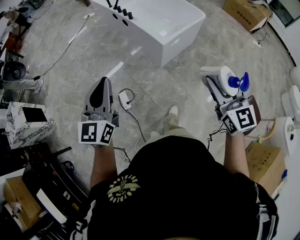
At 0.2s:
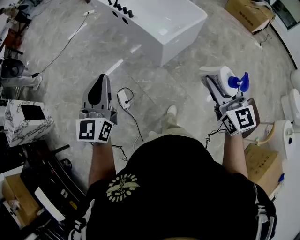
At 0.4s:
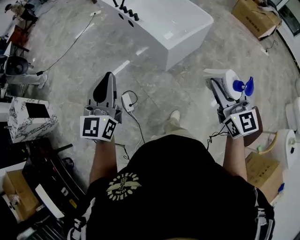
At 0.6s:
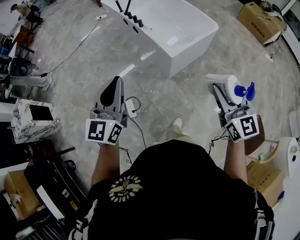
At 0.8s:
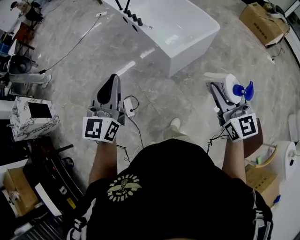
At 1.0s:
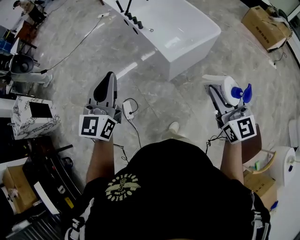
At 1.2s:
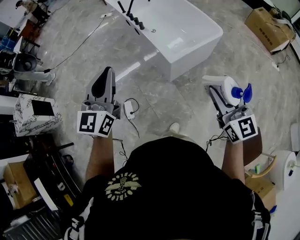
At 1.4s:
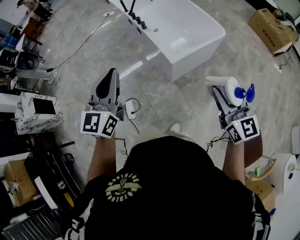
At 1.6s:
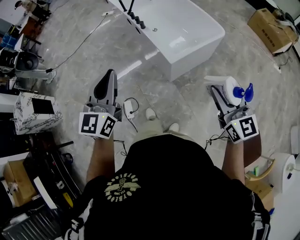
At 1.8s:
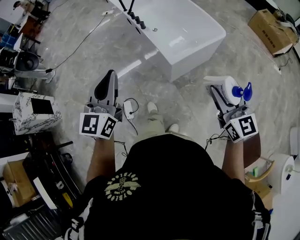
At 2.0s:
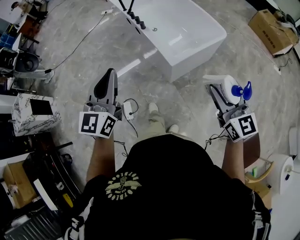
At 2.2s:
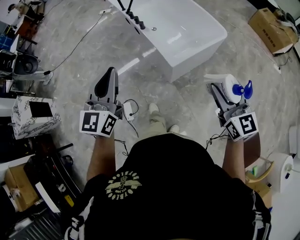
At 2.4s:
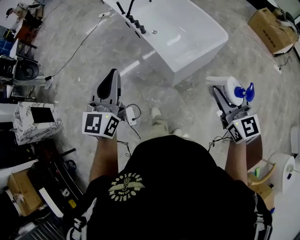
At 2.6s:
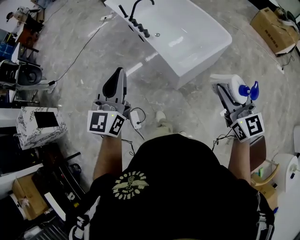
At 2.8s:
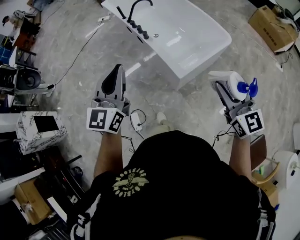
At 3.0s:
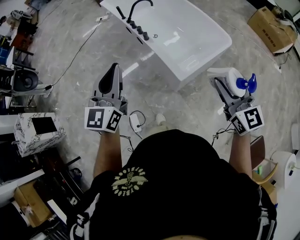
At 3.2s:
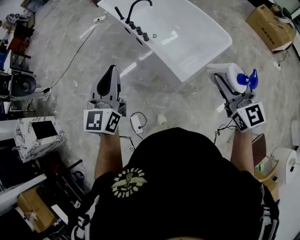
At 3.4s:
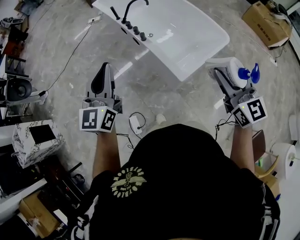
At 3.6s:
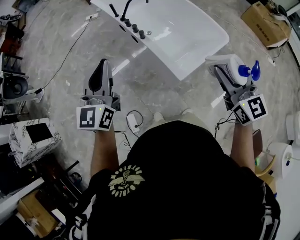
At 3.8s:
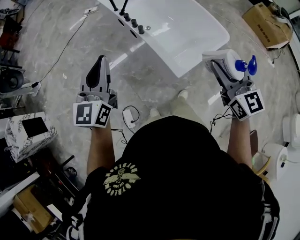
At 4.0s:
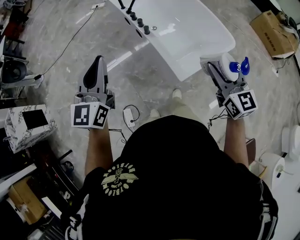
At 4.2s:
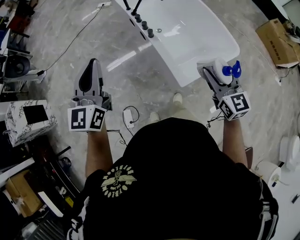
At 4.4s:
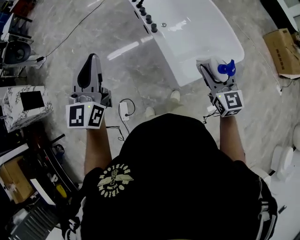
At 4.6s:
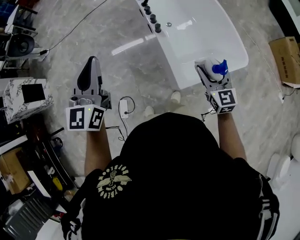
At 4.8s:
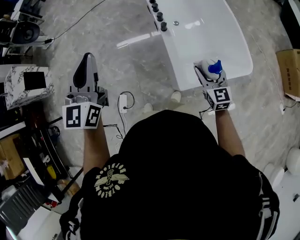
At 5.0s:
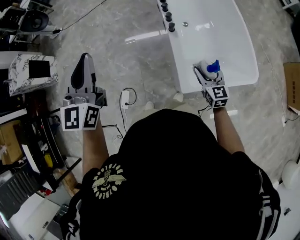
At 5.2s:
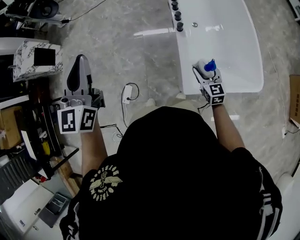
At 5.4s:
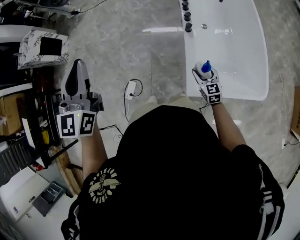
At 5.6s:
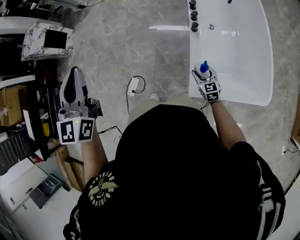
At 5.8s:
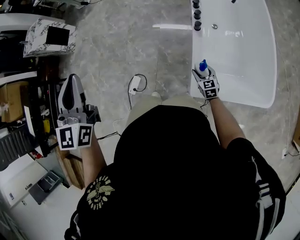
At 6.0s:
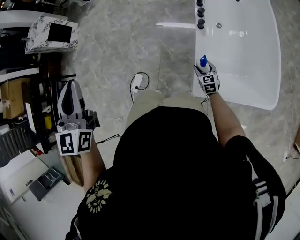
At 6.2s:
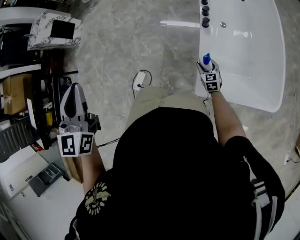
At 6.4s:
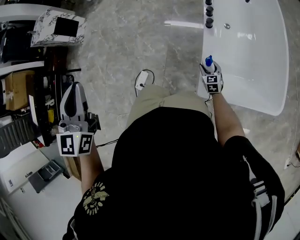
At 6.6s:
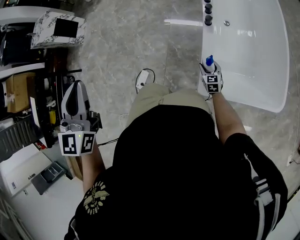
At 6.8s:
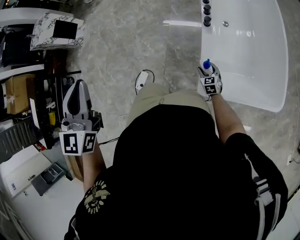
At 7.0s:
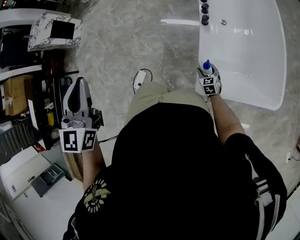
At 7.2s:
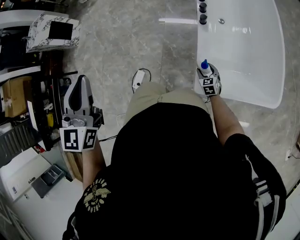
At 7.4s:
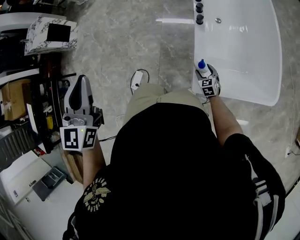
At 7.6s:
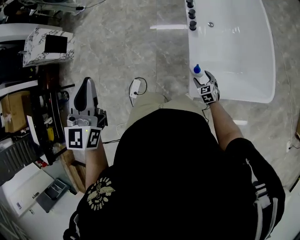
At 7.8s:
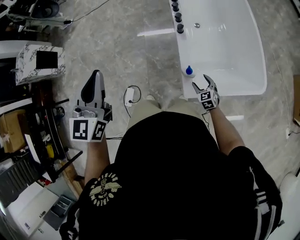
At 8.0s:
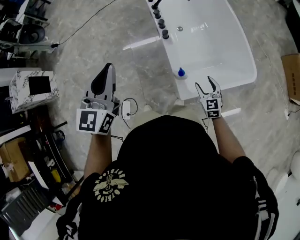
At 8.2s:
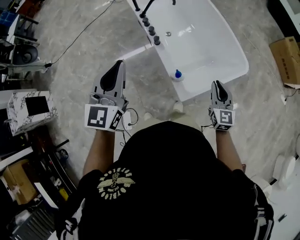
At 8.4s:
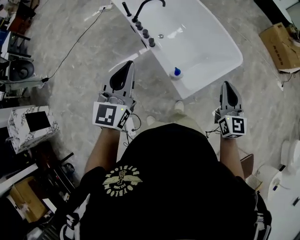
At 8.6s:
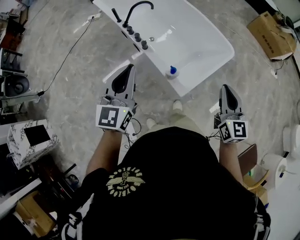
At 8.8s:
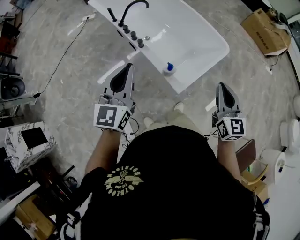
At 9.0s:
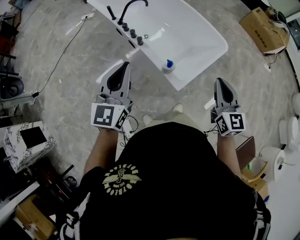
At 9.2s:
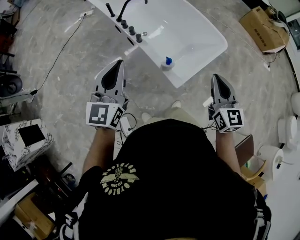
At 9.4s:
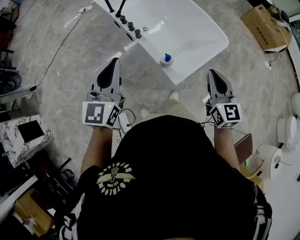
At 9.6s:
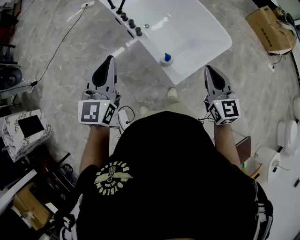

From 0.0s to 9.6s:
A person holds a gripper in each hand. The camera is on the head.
From 0.0s to 1.6s: Both grippers move forward and to the right, about 20 cm.
From 1.6s to 3.2s: The left gripper is displaced forward by roughly 25 cm. Meanwhile the right gripper travels forward and to the left by approximately 25 cm.
From 3.2s to 4.8s: The left gripper is displaced forward by roughly 10 cm, and changes its angle by roughly 30 degrees; the right gripper shifts about 30 cm forward and downward, and swivels some 20 degrees.
From 4.8s to 6.4s: The right gripper shifts about 35 cm downward, and turns by some 20 degrees. Meanwhile the left gripper moves roughly 15 cm, and turns by roughly 30 degrees.
From 6.4s to 8.0s: The left gripper ends up roughly 20 cm from where it was, and changes its angle by roughly 40 degrees, while the right gripper moves upward, roughly 20 cm, and swivels approximately 20 degrees.
From 8.0s to 9.6s: The left gripper rotates roughly 20 degrees; the right gripper goes approximately 25 cm upward, turns by approximately 30 degrees, and closes up.

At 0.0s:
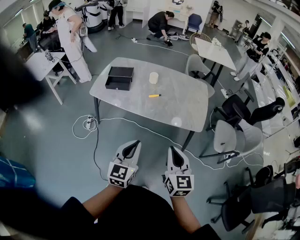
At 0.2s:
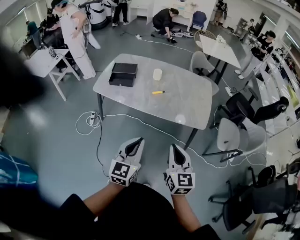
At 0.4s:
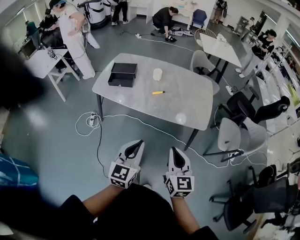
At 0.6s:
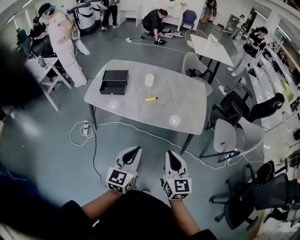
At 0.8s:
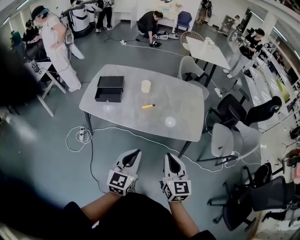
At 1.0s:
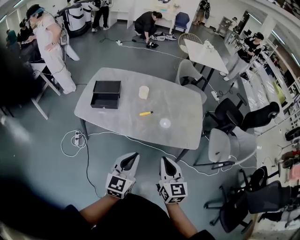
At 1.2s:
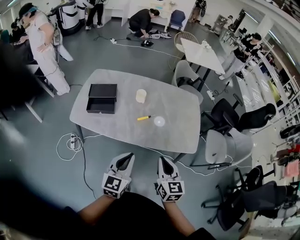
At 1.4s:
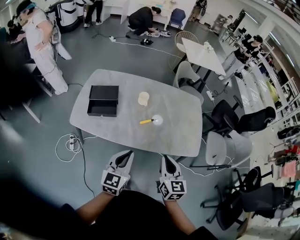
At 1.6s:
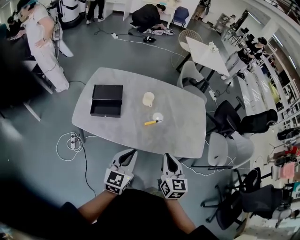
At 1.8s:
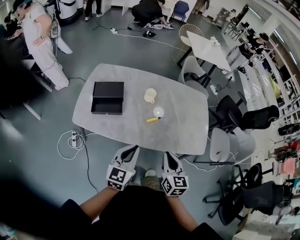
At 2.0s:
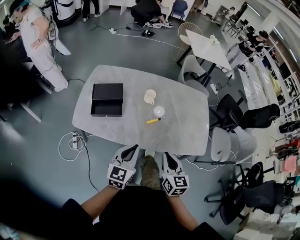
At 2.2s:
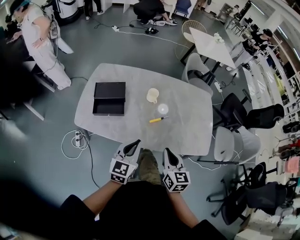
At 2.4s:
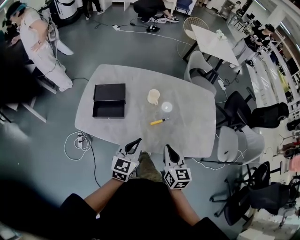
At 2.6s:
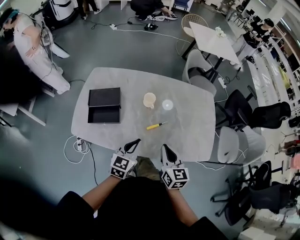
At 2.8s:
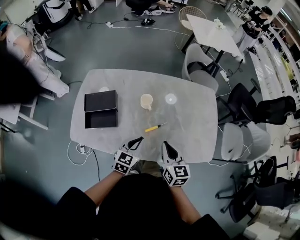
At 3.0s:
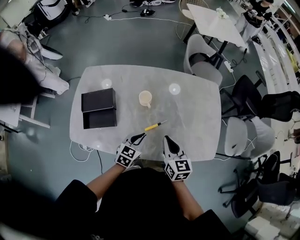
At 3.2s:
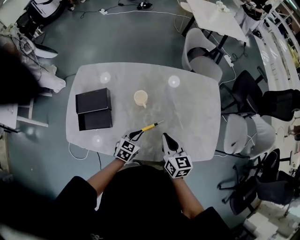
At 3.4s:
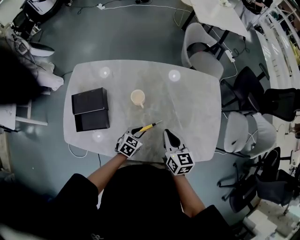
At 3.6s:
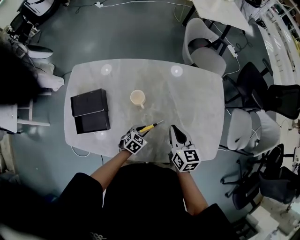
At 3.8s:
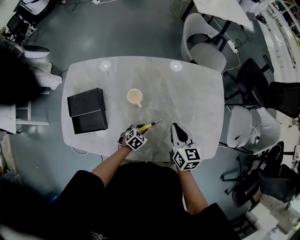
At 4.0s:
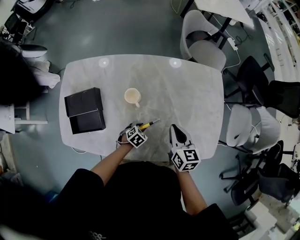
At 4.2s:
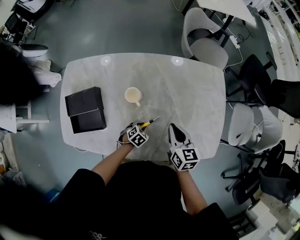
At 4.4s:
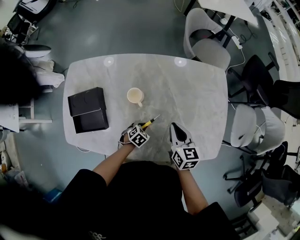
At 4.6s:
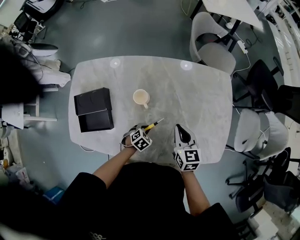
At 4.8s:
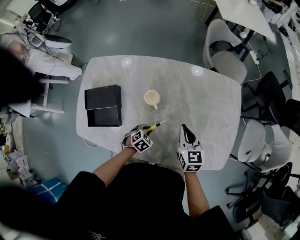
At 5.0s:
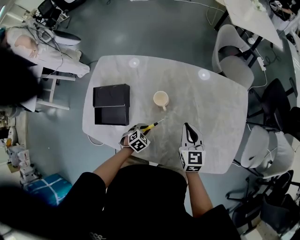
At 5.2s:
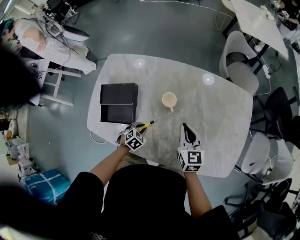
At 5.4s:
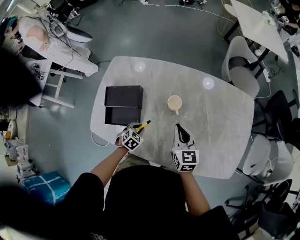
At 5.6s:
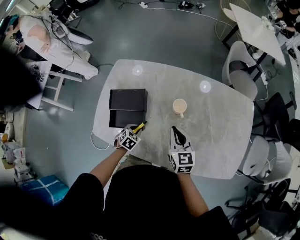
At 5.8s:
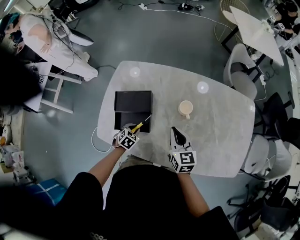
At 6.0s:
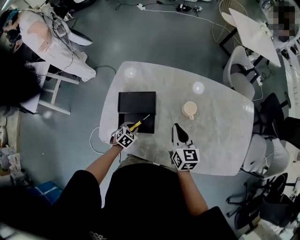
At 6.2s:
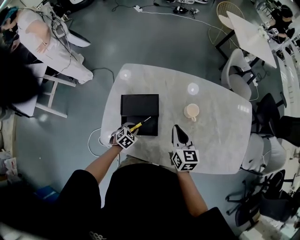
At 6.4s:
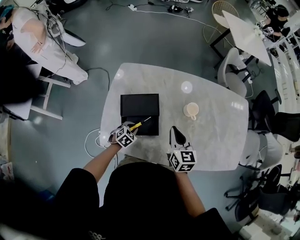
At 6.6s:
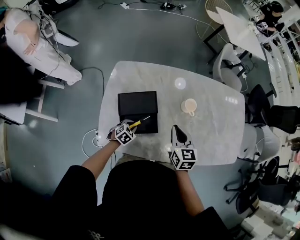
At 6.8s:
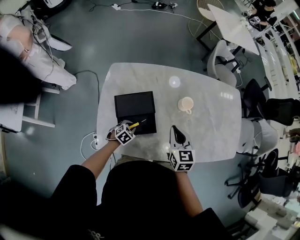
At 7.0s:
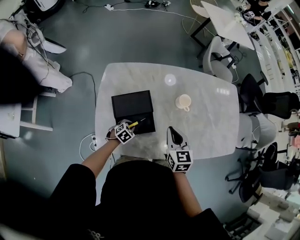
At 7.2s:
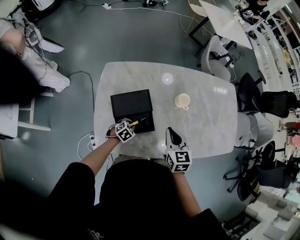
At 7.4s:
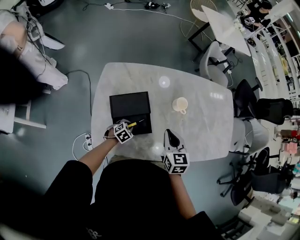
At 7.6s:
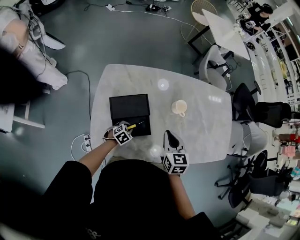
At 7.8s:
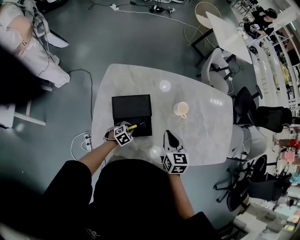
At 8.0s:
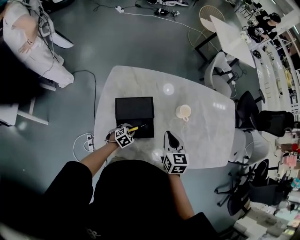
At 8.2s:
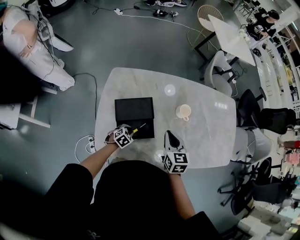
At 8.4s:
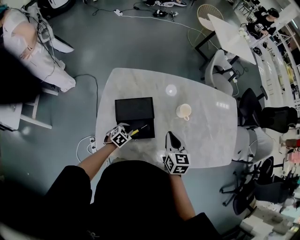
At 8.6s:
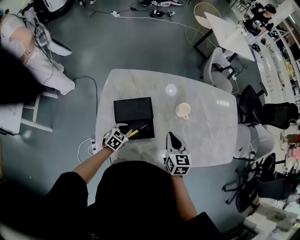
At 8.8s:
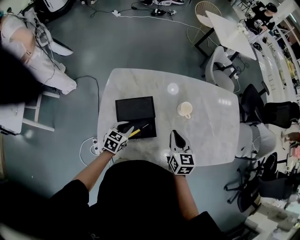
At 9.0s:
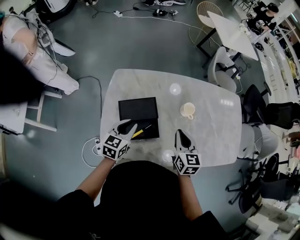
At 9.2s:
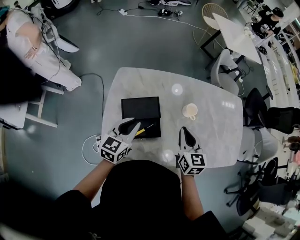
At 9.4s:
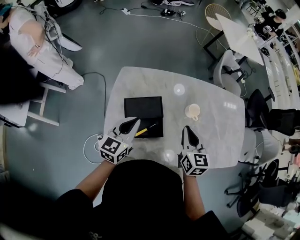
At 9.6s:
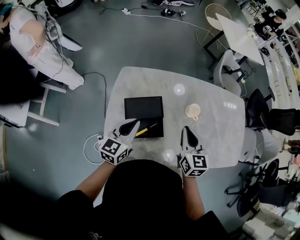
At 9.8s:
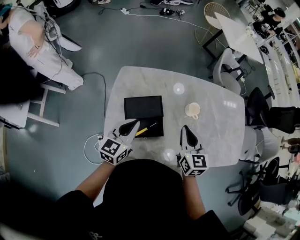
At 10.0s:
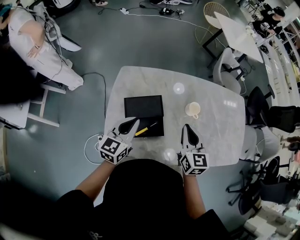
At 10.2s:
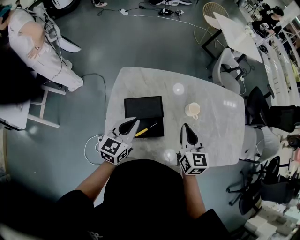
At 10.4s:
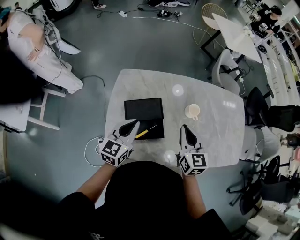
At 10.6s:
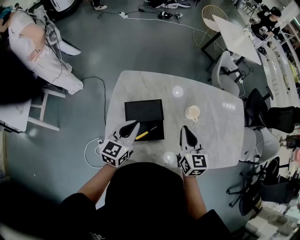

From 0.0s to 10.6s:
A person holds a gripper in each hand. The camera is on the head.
From 0.0s to 1.6s: The grippers both shift forward and to the left by roughly 30 cm.
From 1.6s to 3.0s: The right gripper moves forward, roughly 25 cm. Meanwhile the left gripper travels forward and downward by about 30 cm, and swivels some 30 degrees.
From 3.0s to 4.6s: The right gripper goes some 15 cm forward and downward. The left gripper travels downward by approximately 20 cm, and angles its fingers downward, by approximately 40 degrees.
From 4.6s to 6.0s: The grippers both shift to the left by about 30 cm.
From 6.0s to 7.6s: The right gripper heads backward and to the left, covering roughly 10 cm; the left gripper travels downward by some 5 cm, and rotates roughly 20 degrees.
From 7.6s to 9.0s: The left gripper is displaced upward by approximately 25 cm, and angles its fingers upward, by roughly 30 degrees.
From 9.0s to 10.6s: Both grippers travel together upward, about 5 cm.

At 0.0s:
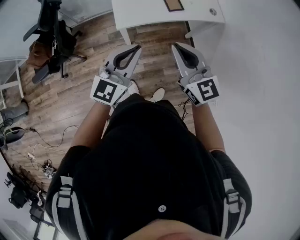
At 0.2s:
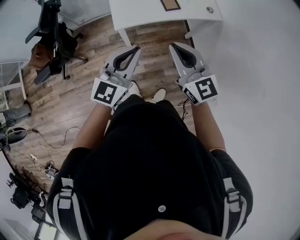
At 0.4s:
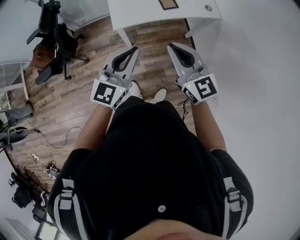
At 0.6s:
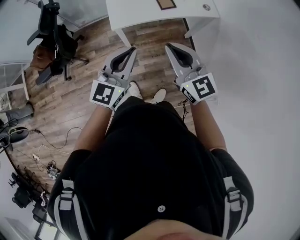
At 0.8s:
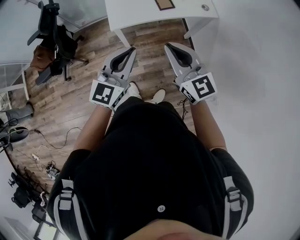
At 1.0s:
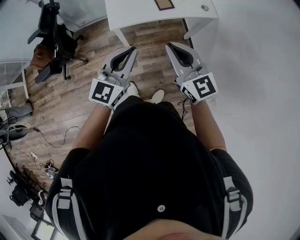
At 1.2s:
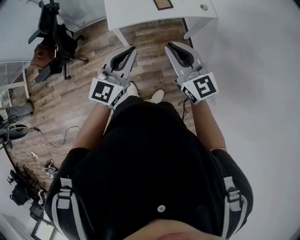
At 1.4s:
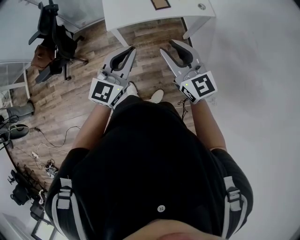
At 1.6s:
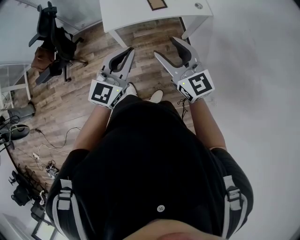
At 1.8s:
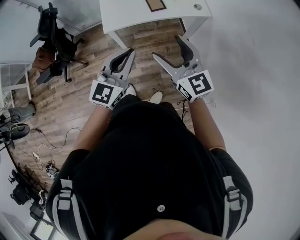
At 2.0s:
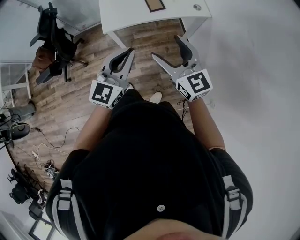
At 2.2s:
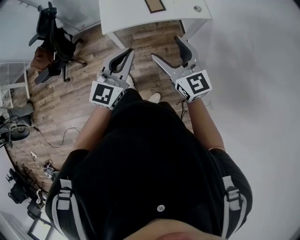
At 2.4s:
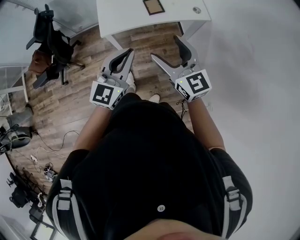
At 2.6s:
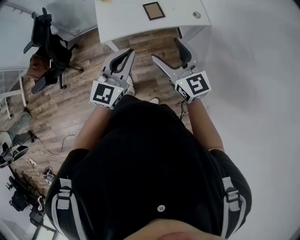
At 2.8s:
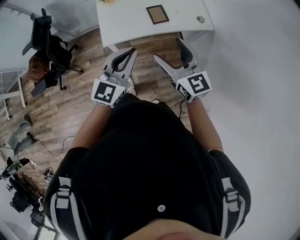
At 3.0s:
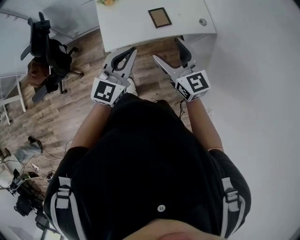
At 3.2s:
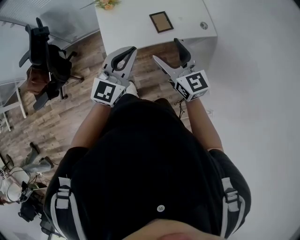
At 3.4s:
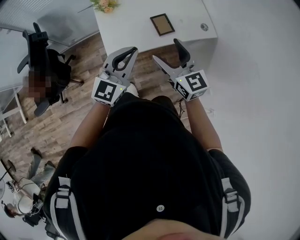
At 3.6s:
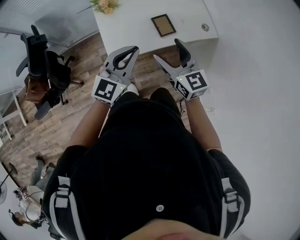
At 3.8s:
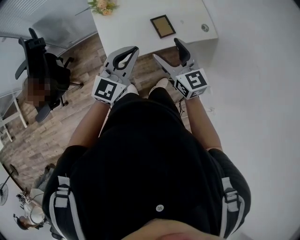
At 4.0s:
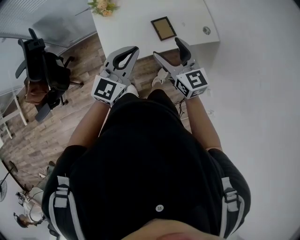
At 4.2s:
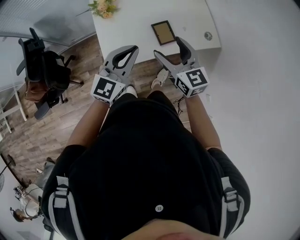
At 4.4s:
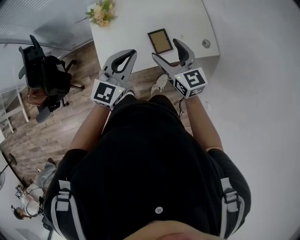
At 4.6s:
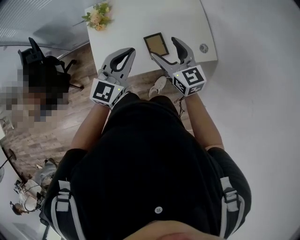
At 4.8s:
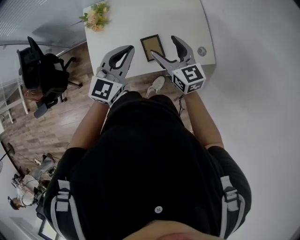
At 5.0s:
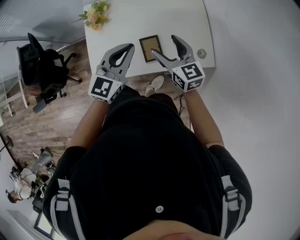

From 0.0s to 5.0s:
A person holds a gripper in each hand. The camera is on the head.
From 0.0s to 1.6s: The two grippers go approximately 15 cm to the right and backward. The right gripper opens.
From 1.6s to 3.4s: The grippers both shift forward by about 25 cm.
From 3.4s to 5.0s: The grippers both shift forward and to the right by about 30 cm.
